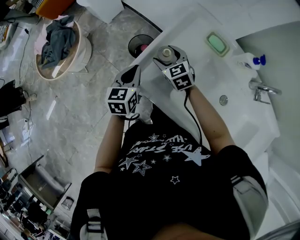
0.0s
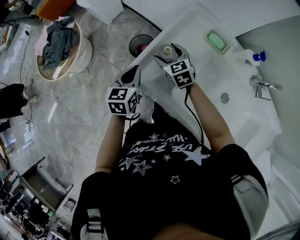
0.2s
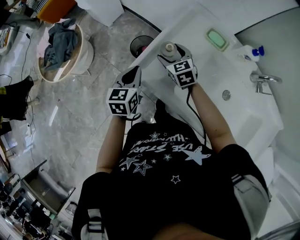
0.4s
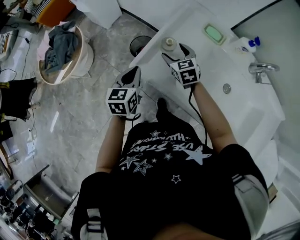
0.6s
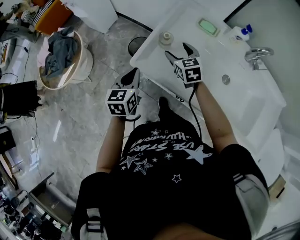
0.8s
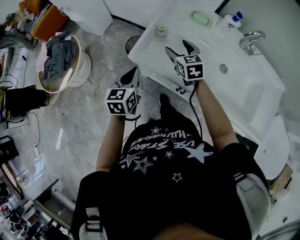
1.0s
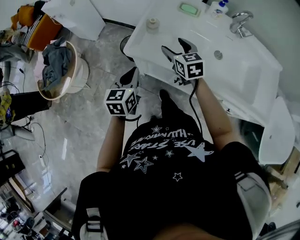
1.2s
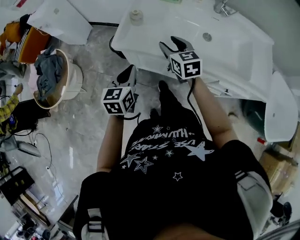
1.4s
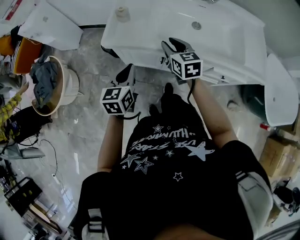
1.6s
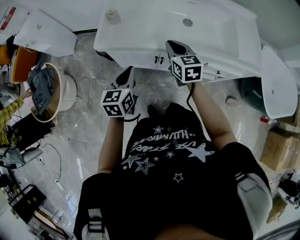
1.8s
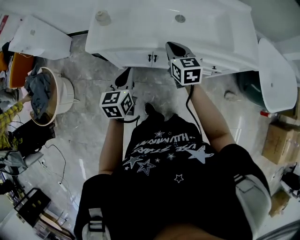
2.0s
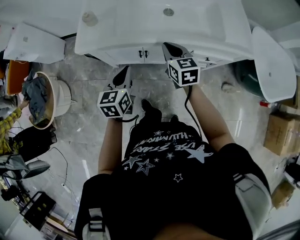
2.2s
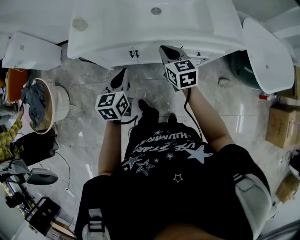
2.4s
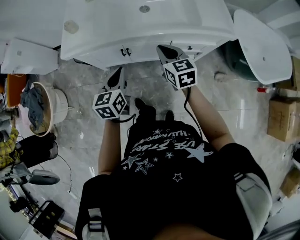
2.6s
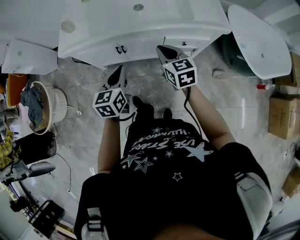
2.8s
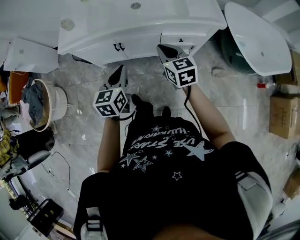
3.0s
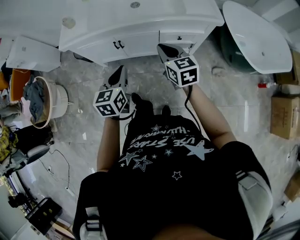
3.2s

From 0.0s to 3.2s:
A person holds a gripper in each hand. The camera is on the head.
From 0.0s to 1.6s: The right gripper ends up roughly 35 cm from where it was, turns by roughly 50 degrees, and closes. Meanwhile the left gripper ends up approximately 25 cm from where it was, and rotates approximately 30 degrees.
From 1.6s to 3.2s: The grippers both shift to the right and backward by approximately 35 cm. The right gripper closes its fingers.

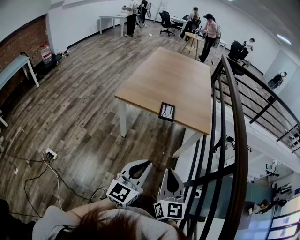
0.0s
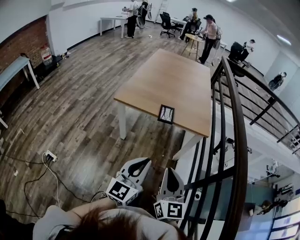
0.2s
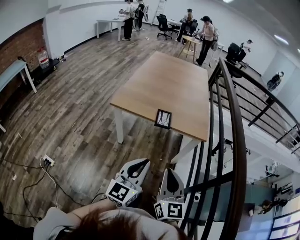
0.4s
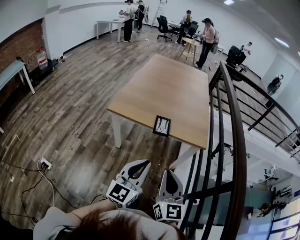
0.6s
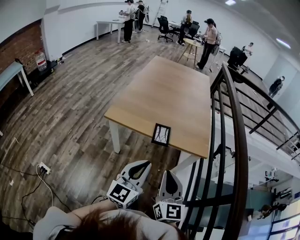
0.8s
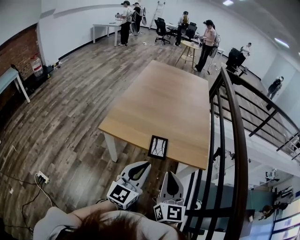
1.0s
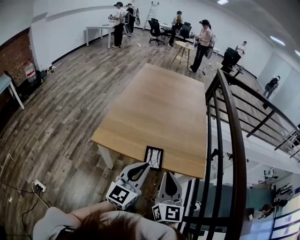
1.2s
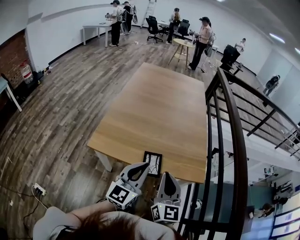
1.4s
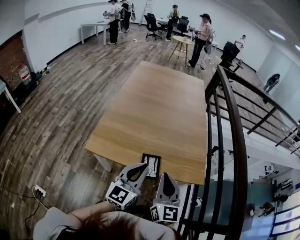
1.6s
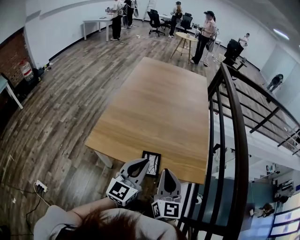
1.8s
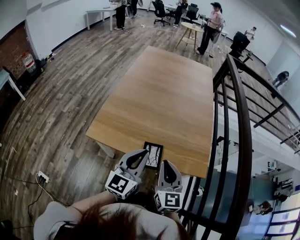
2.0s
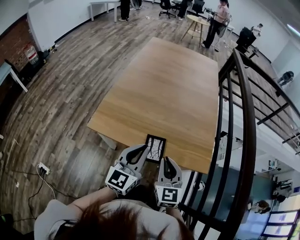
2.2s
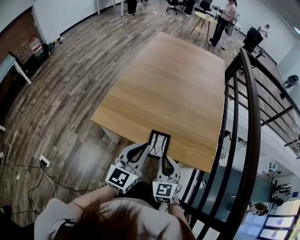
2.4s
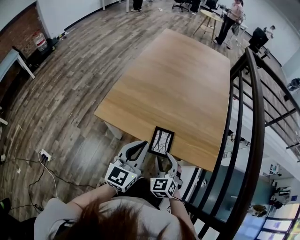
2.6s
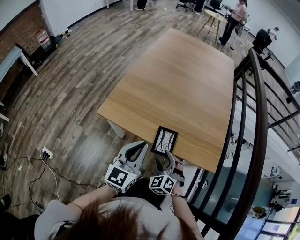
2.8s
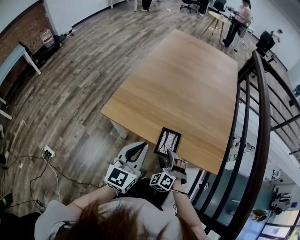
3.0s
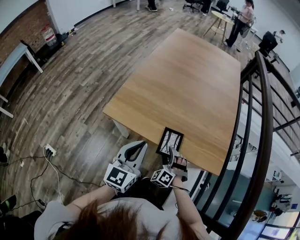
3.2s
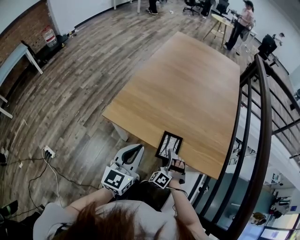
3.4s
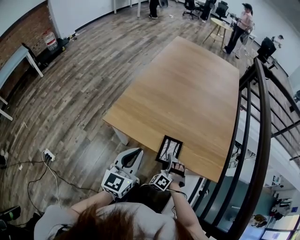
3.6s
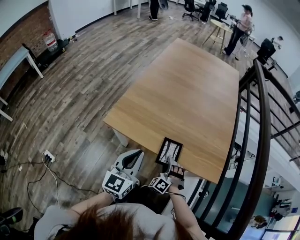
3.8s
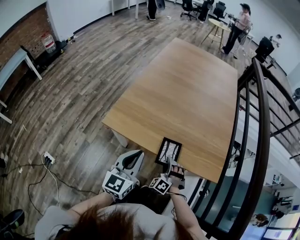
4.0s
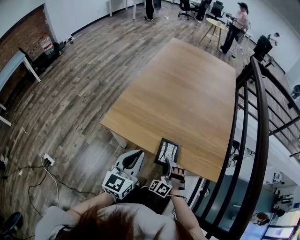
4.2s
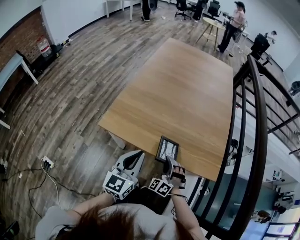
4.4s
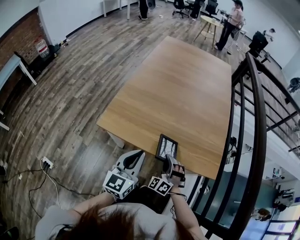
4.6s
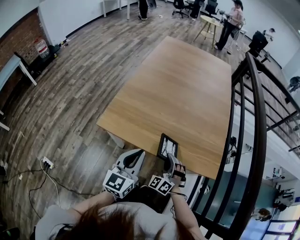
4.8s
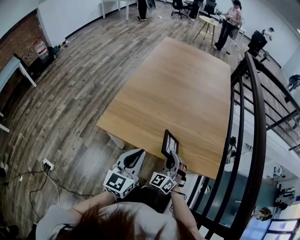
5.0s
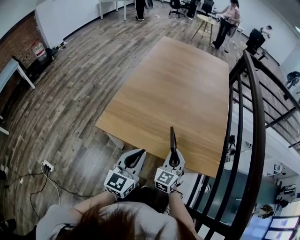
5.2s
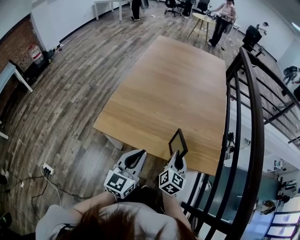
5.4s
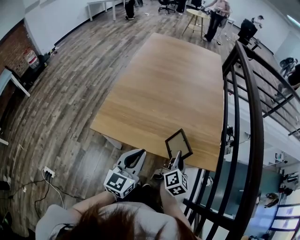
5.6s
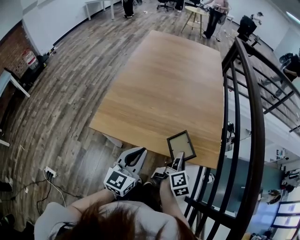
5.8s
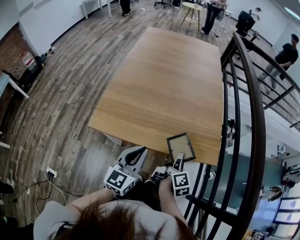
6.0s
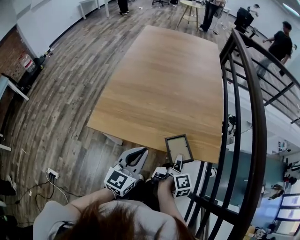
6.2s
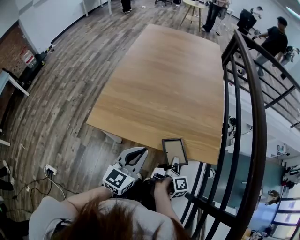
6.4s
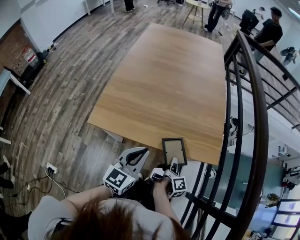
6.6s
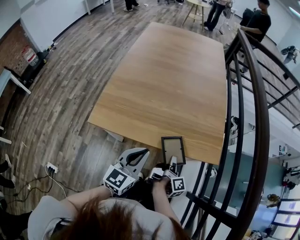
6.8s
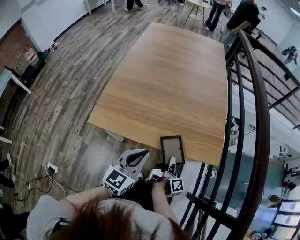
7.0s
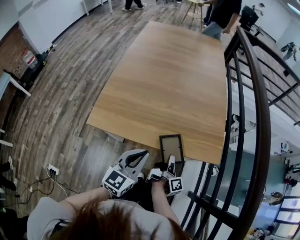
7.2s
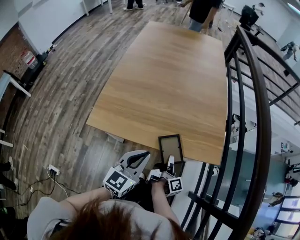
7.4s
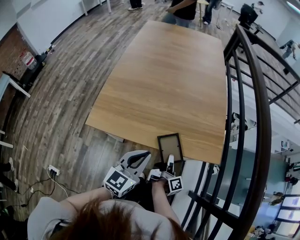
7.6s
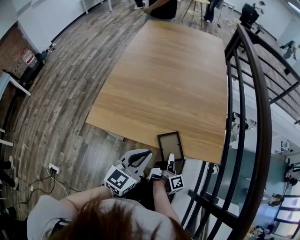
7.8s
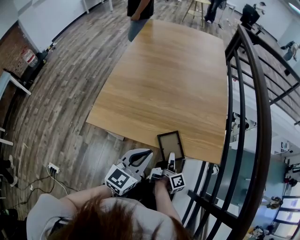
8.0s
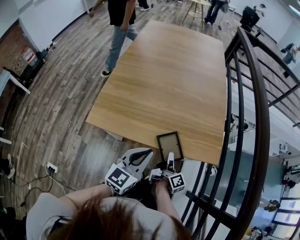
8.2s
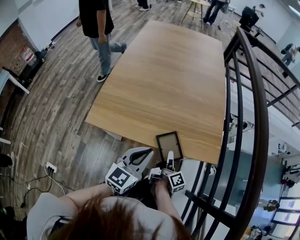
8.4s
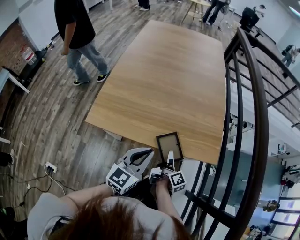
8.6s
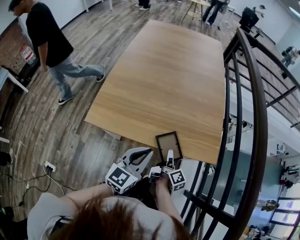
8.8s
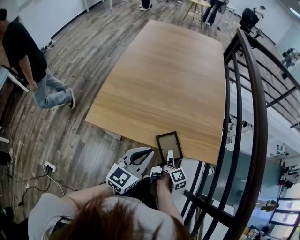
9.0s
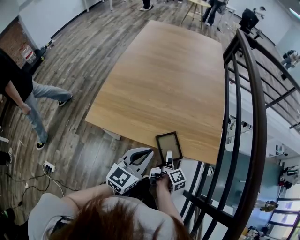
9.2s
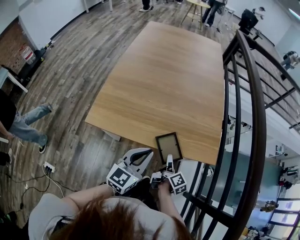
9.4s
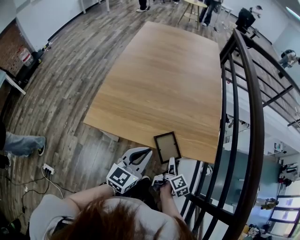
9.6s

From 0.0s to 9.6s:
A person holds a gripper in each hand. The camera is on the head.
From 0.0s to 1.6s: The grippers both shift forward by roughly 40 cm.
From 1.6s to 3.2s: The right gripper heads downward, covering approximately 25 cm, rotates around the line of its fingers by about 70 degrees, counterclockwise from behind, and opens up. Meanwhile the left gripper travels to the left and downward by some 10 cm.
From 3.2s to 4.8s: The right gripper goes about 5 cm upward, swivels about 20 degrees, and closes up.
From 4.8s to 6.4s: The right gripper is displaced to the right by roughly 10 cm, and rotates around the line of its fingers by roughly 160 degrees, clockwise from behind. Meanwhile the left gripper goes some 5 cm to the right.
From 6.4s to 8.0s: The grippers make only small movements.
From 8.0s to 9.6s: The right gripper turns by about 30 degrees, and opens.

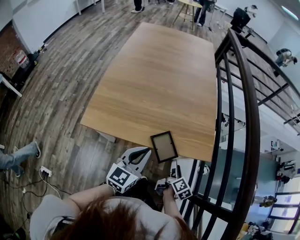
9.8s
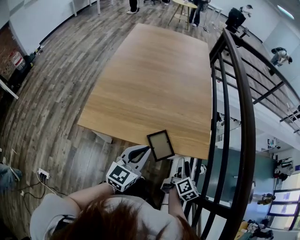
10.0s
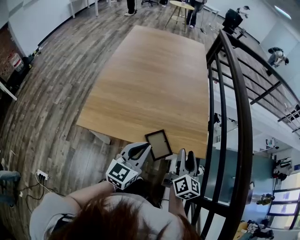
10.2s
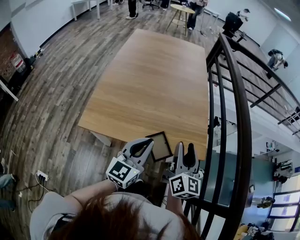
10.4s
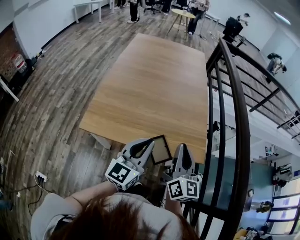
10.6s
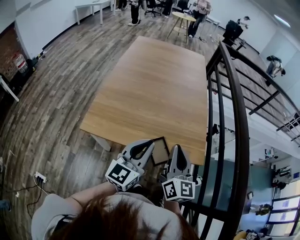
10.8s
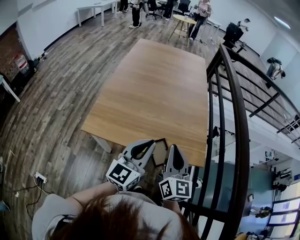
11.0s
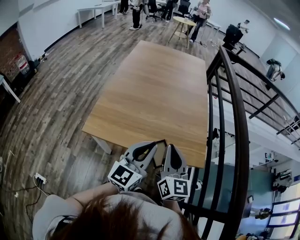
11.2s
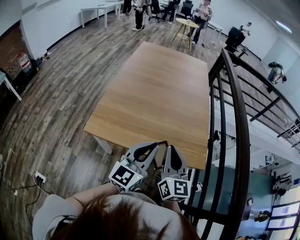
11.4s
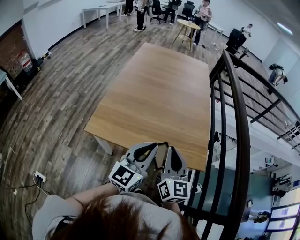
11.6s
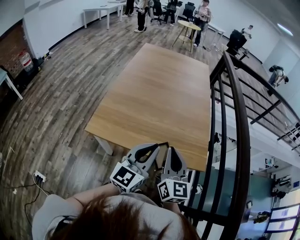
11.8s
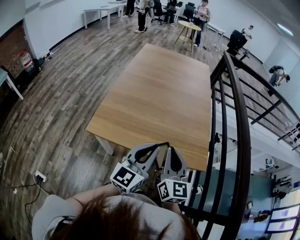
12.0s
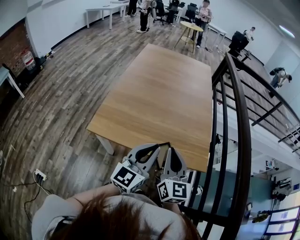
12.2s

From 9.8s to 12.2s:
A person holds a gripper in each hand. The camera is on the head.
From 9.8s to 11.0s: The right gripper moves upward, some 30 cm, rolls counterclockwise, seen from behind, by about 50 degrees, and closes its fingers. The left gripper is displaced upward by approximately 10 cm.
From 11.0s to 12.2s: The grippers make only small movements.

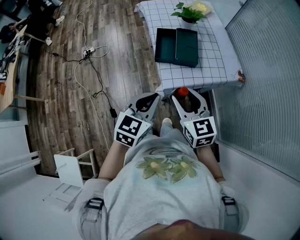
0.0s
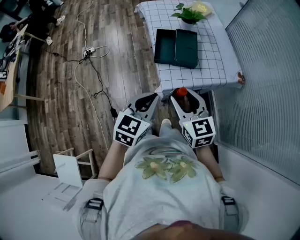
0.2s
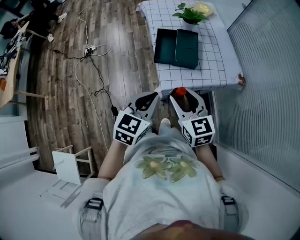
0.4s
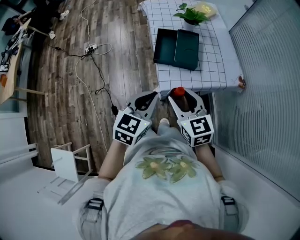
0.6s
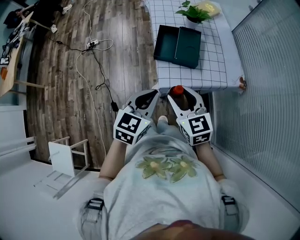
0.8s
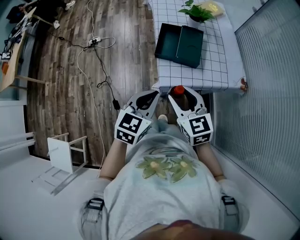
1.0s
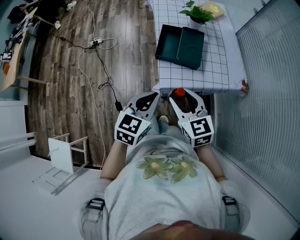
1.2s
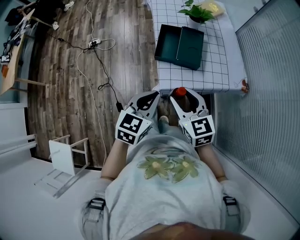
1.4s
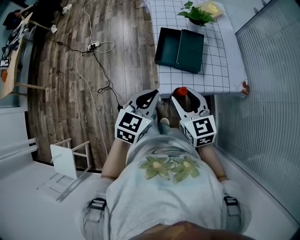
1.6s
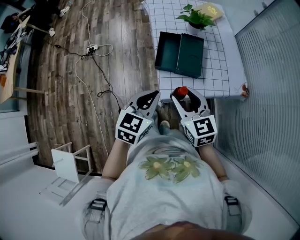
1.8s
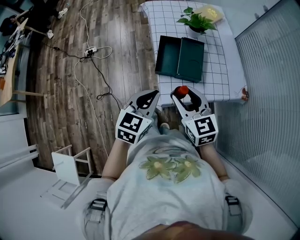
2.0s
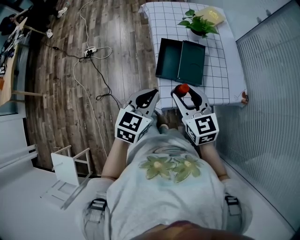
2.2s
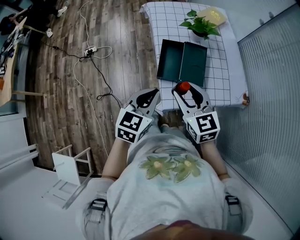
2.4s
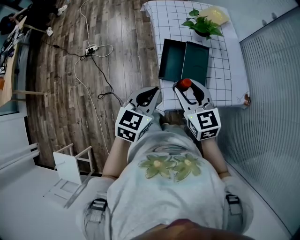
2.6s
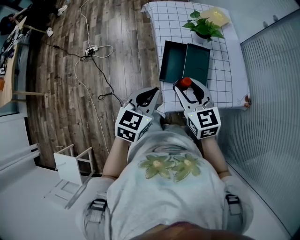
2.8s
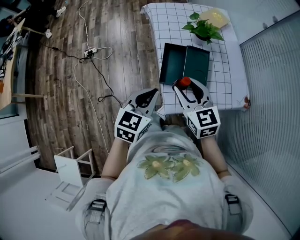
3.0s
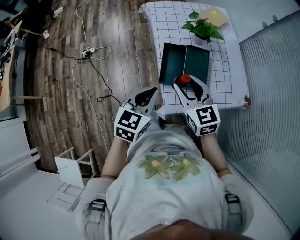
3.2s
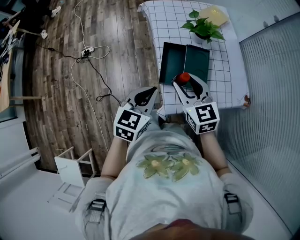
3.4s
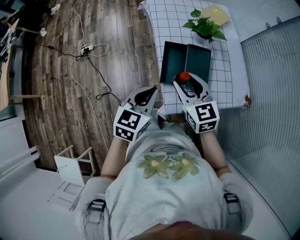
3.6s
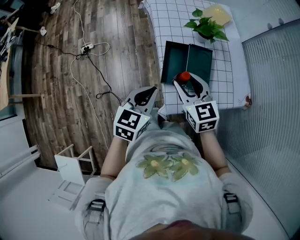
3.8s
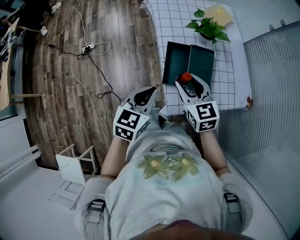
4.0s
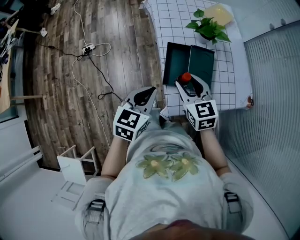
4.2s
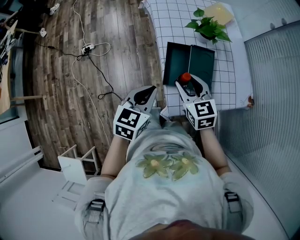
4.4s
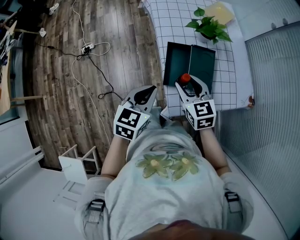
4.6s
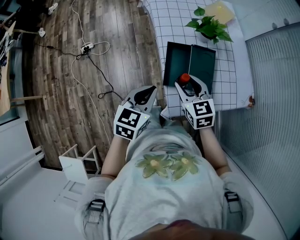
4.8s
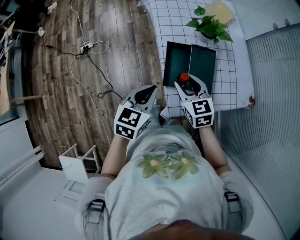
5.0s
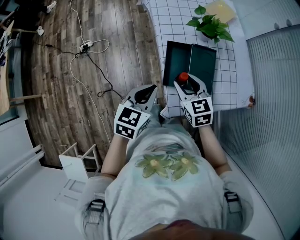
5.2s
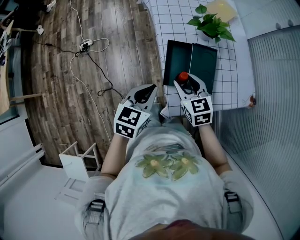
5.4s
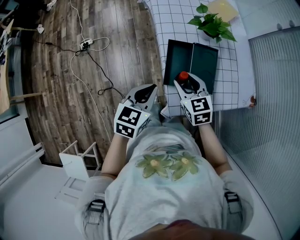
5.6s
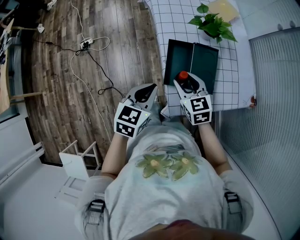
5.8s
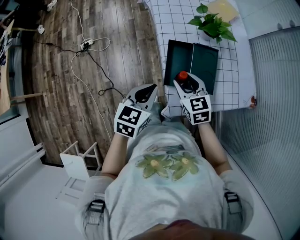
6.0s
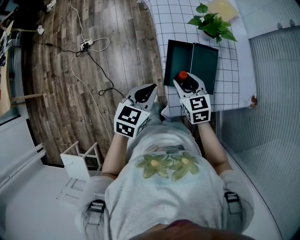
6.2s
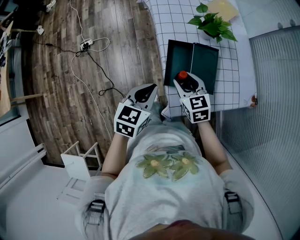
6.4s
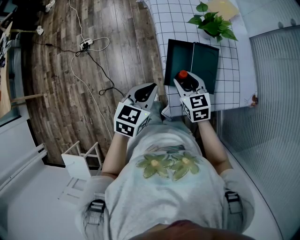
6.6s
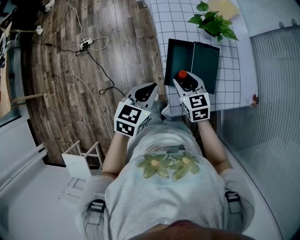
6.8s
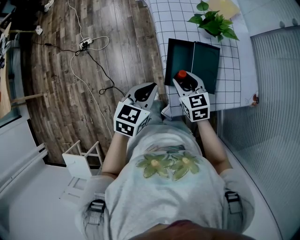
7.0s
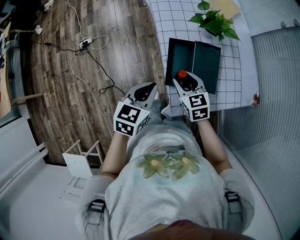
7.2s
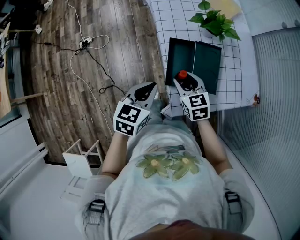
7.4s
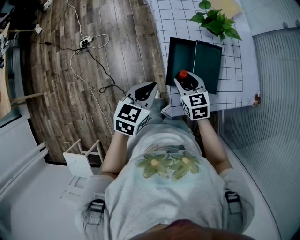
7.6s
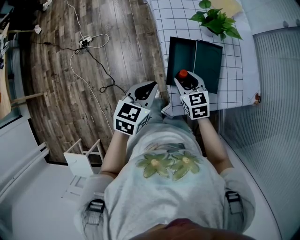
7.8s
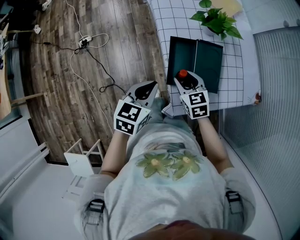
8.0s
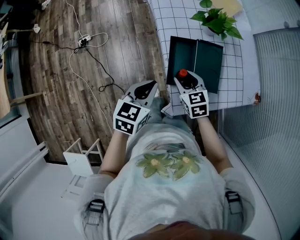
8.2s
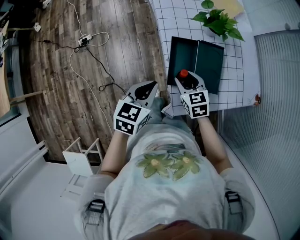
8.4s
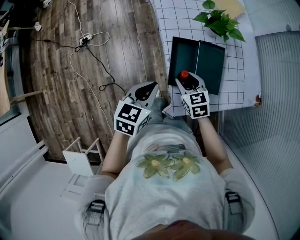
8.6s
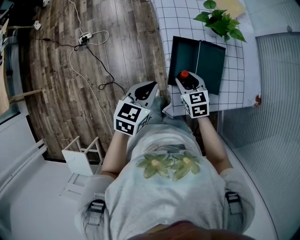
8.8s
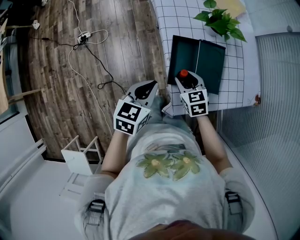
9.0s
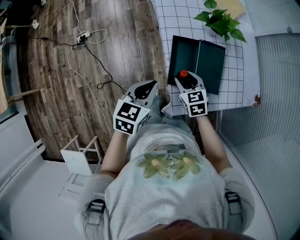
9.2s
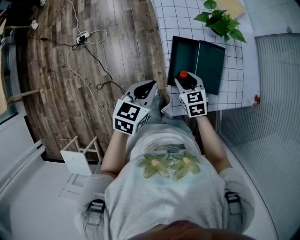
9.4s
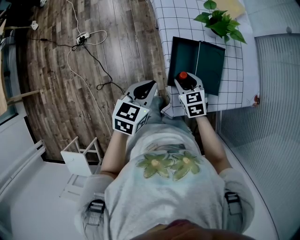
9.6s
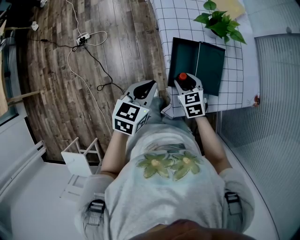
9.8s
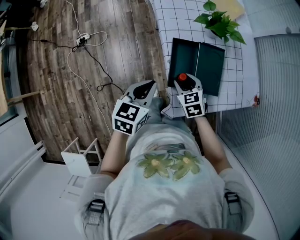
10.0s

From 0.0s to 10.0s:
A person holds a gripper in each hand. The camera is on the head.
From 0.0s to 1.4s: The left gripper changes place by some 5 cm. Meanwhile the right gripper shifts by some 5 cm.
From 1.4s to 2.8s: The grippers both shift forward by about 15 cm.
From 2.8s to 4.2s: The left gripper changes place by some 5 cm. Meanwhile the right gripper is displaced forward by roughly 5 cm.
From 4.2s to 5.8s: The right gripper moves downward, some 5 cm.
From 5.8s to 7.2s: The grippers stay close to where they were, moving slightly.
From 7.2s to 10.0s: There are only small adjustments of the grippers.
